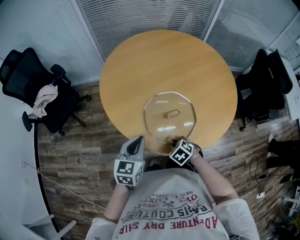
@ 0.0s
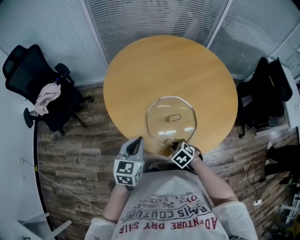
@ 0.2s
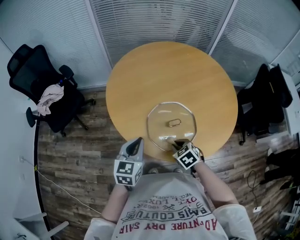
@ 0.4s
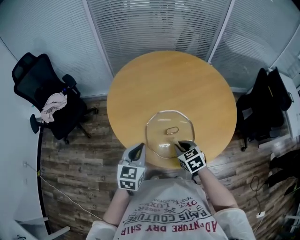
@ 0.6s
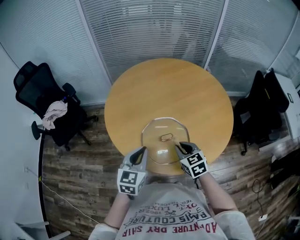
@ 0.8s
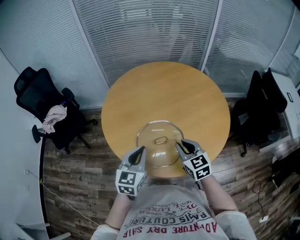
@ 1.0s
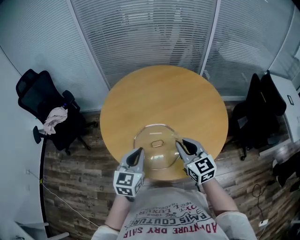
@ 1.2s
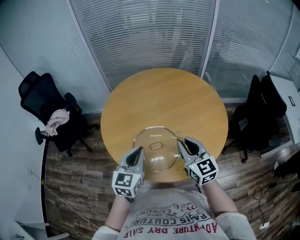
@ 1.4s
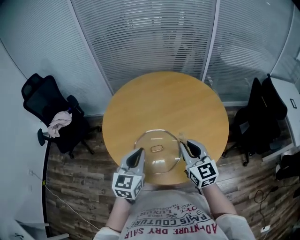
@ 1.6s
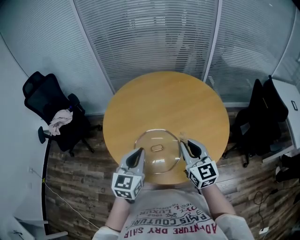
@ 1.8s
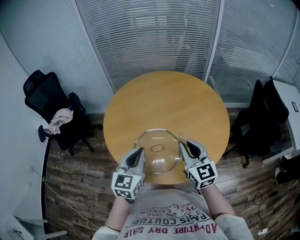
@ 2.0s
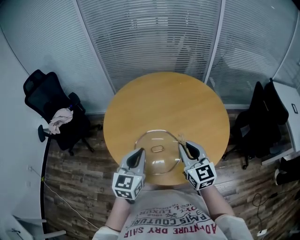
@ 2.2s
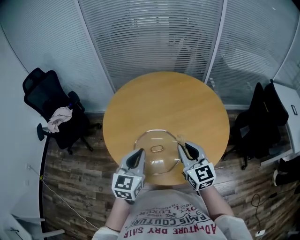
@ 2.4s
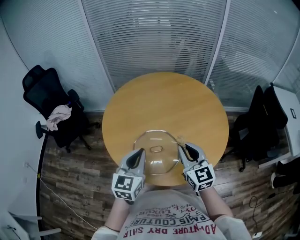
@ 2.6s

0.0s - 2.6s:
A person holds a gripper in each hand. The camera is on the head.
0.0s - 1.2s: The left gripper goes some 15 cm to the right and upward; the right gripper shifts approximately 30 cm upward and to the right, and tips its fingers upward by roughly 60 degrees.
1.2s - 2.6s: The grippers make only small movements.

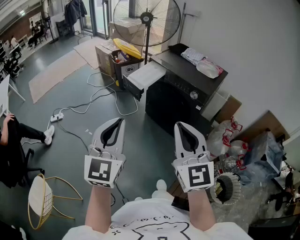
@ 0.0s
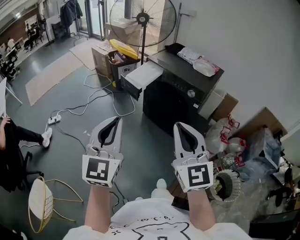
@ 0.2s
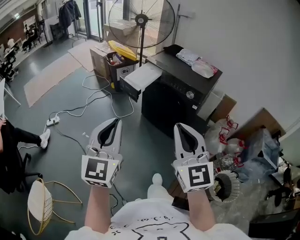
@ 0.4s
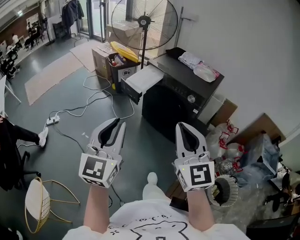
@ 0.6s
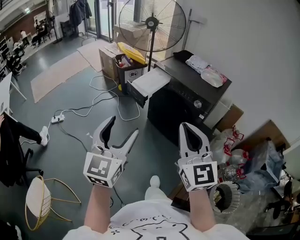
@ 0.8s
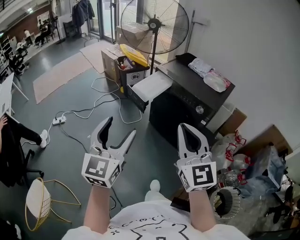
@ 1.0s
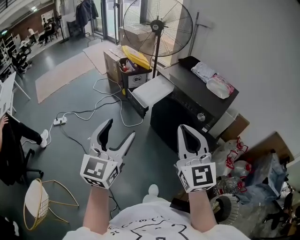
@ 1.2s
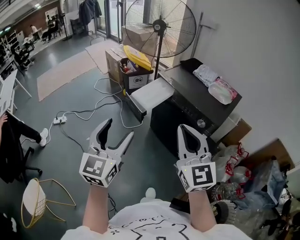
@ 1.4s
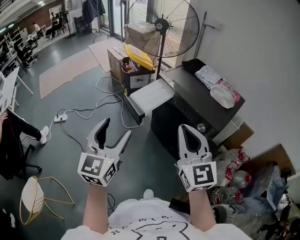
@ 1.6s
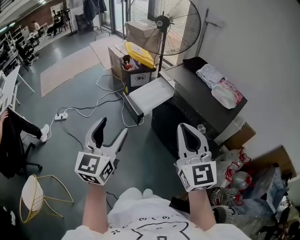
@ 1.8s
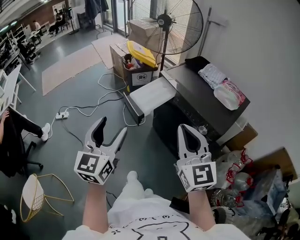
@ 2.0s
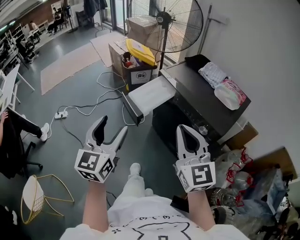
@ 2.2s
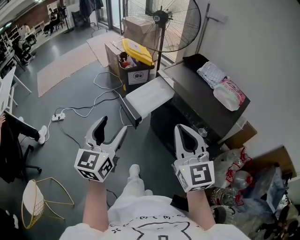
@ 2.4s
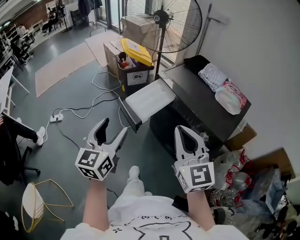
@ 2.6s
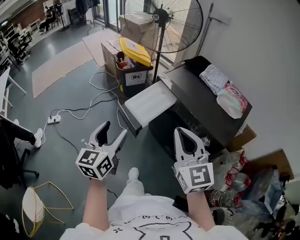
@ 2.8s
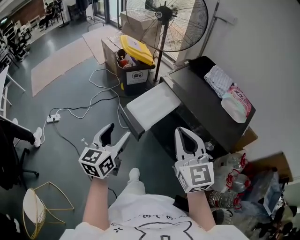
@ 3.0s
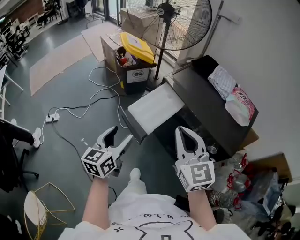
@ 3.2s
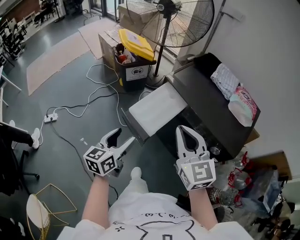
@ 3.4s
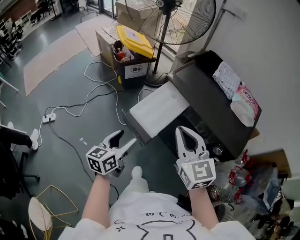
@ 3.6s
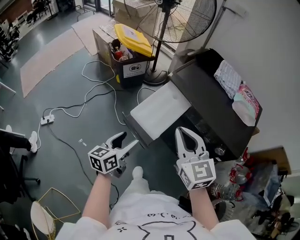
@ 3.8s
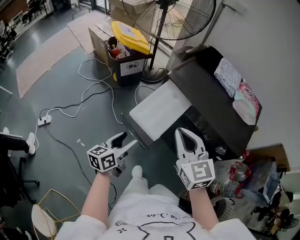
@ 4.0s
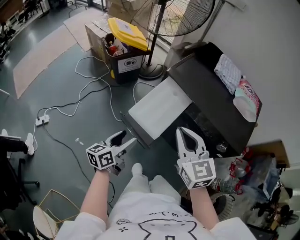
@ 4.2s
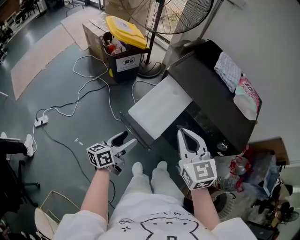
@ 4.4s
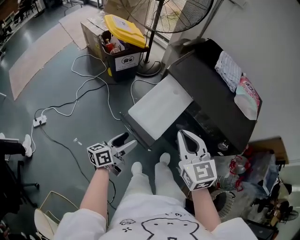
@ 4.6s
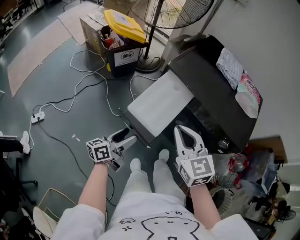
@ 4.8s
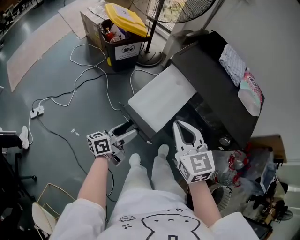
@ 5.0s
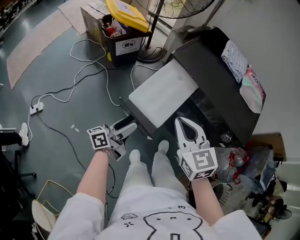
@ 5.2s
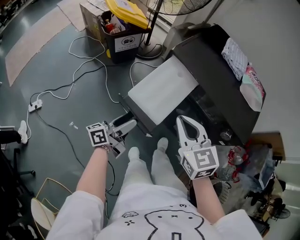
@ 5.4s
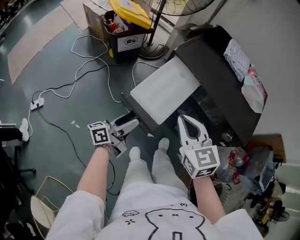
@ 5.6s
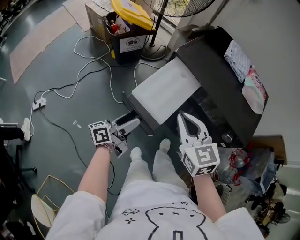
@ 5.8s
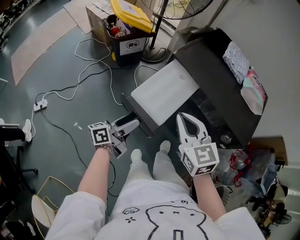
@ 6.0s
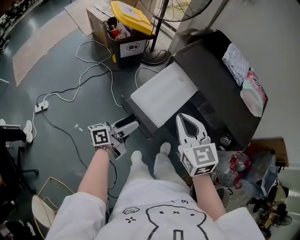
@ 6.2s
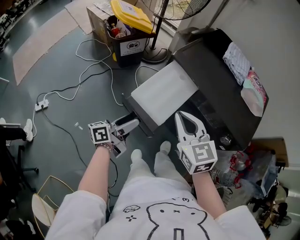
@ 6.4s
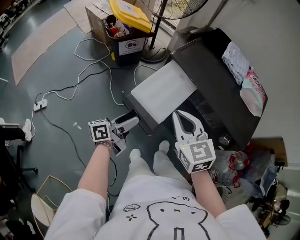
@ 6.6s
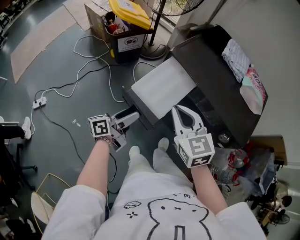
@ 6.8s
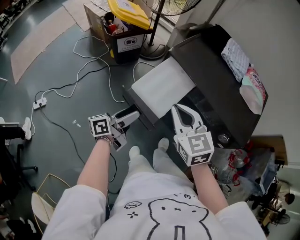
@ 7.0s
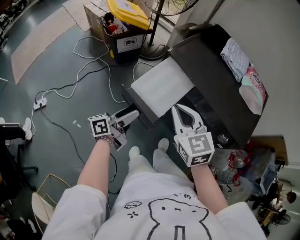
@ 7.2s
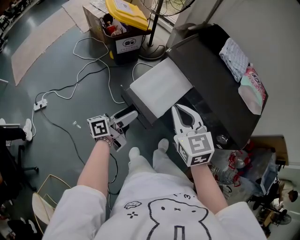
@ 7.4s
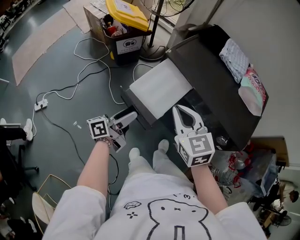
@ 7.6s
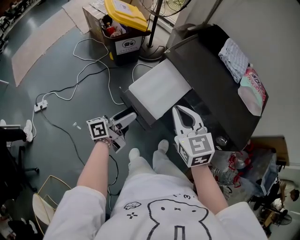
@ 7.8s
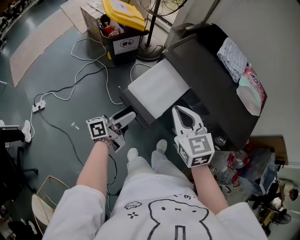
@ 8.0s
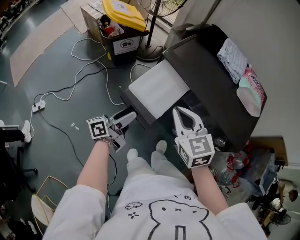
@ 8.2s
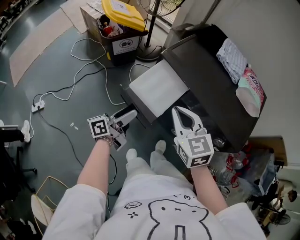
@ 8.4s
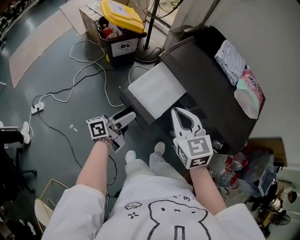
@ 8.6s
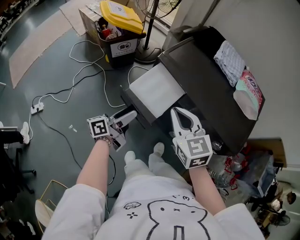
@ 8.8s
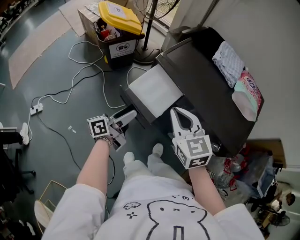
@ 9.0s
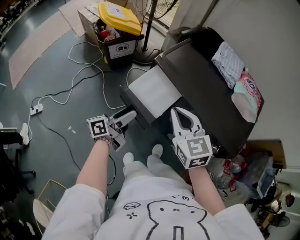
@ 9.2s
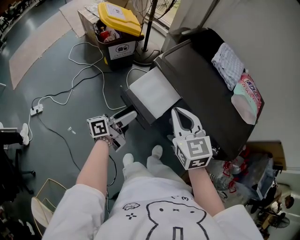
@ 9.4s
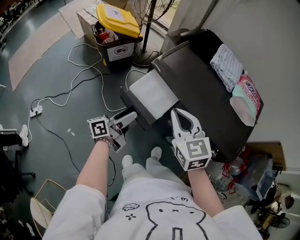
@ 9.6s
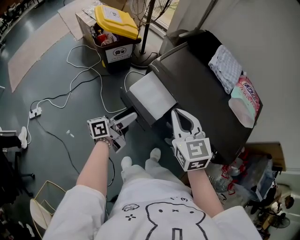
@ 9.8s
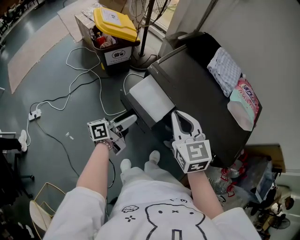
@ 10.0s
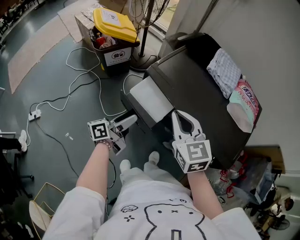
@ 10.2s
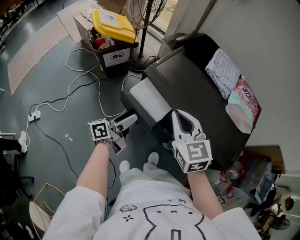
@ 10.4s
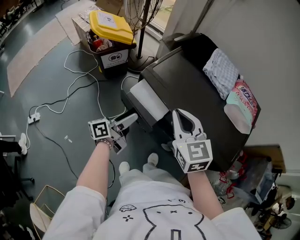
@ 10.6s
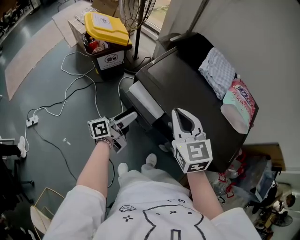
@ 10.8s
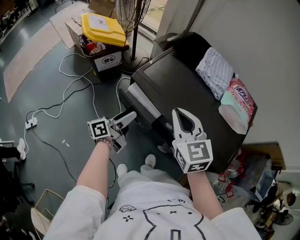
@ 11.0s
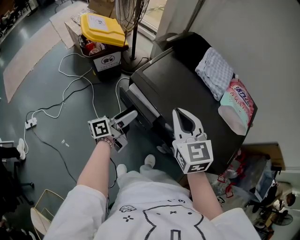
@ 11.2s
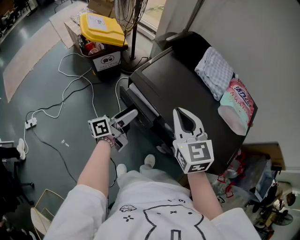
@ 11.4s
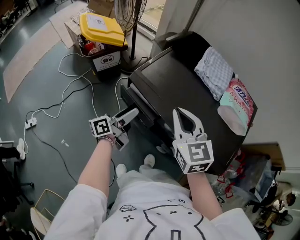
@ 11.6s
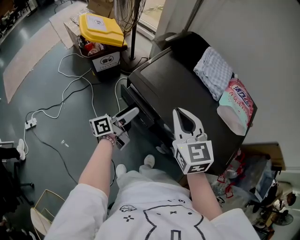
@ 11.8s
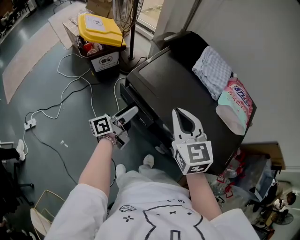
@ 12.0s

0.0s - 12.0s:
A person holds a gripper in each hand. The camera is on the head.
0.0s - 1.6s: The grippers both shift forward by some 20 cm. The left gripper opens up.
1.6s - 3.0s: The left gripper travels forward and downward by some 25 cm, and changes its angle by roughly 20 degrees. Meanwhile the right gripper shifts approximately 20 cm forward.
3.0s - 4.4s: The right gripper heads downward, forward and to the left, covering some 15 cm; the left gripper heads downward and forward, covering some 20 cm, and changes its angle by about 40 degrees.
6.0s - 7.6s: The right gripper changes place by some 5 cm.
7.6s - 9.0s: The left gripper changes place by some 5 cm.
9.0s - 10.4s: Both grippers travel together forward, about 5 cm.
10.4s - 12.0s: The right gripper changes place by approximately 5 cm; the left gripper moves forward, approximately 10 cm.

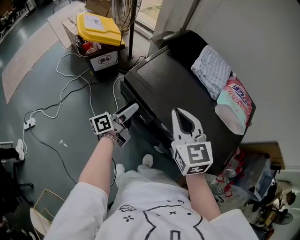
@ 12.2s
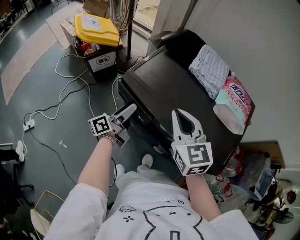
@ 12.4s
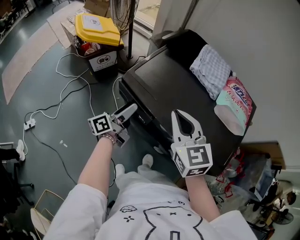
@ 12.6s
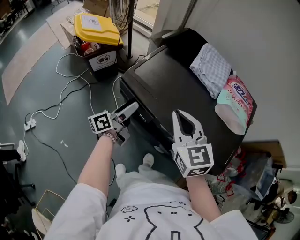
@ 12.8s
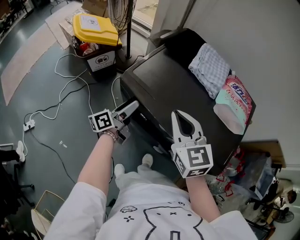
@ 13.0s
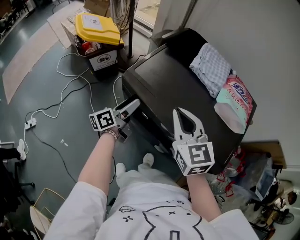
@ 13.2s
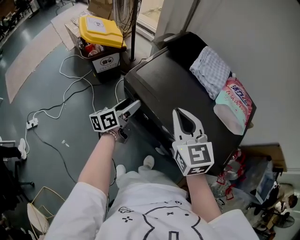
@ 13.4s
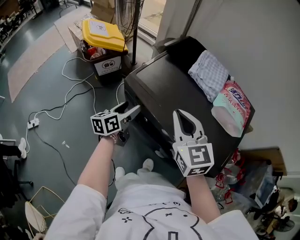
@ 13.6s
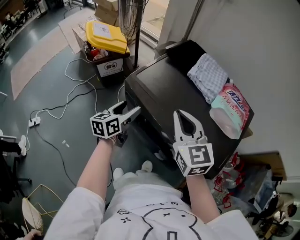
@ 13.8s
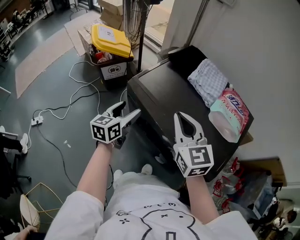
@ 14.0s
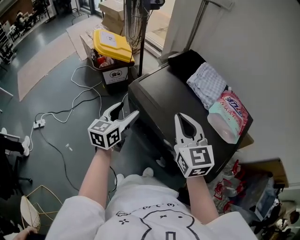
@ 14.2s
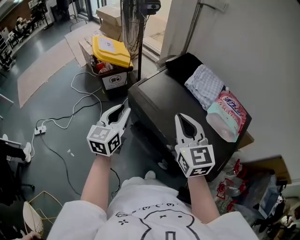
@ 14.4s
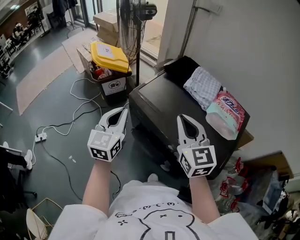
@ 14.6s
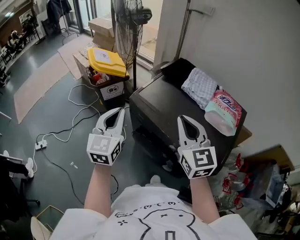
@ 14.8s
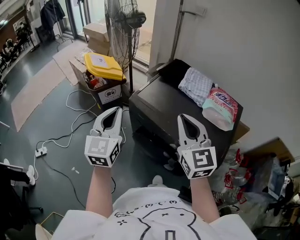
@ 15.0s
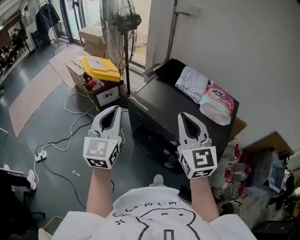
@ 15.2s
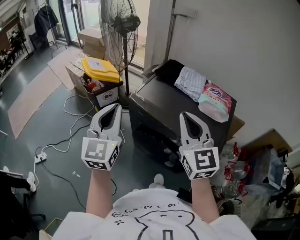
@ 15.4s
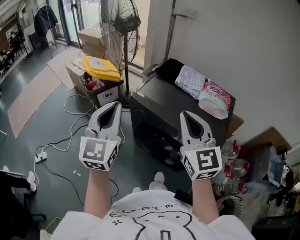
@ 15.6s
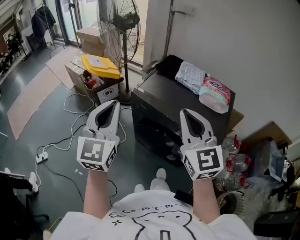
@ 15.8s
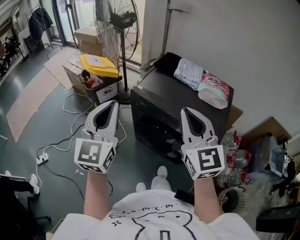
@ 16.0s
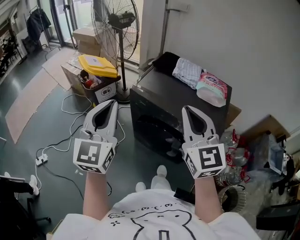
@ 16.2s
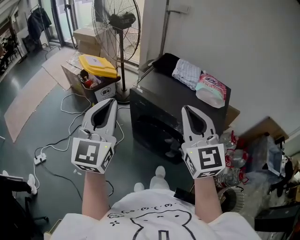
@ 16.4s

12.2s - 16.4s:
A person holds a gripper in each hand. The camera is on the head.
12.2s - 13.6s: The left gripper changes its angle by about 30 degrees.
13.6s - 15.0s: The left gripper moves upward, some 25 cm, rolls clockwise, seen from behind, by some 50 degrees, and closes. Meanwhile the right gripper shifts roughly 10 cm upward and backward.
15.0s - 16.4s: The grippers both shift backward and upward by some 15 cm.

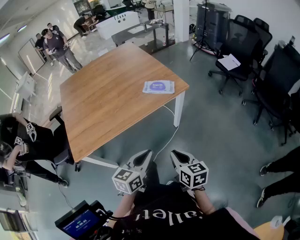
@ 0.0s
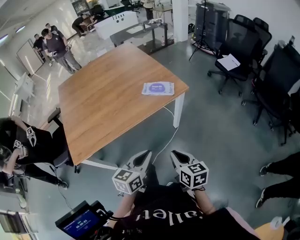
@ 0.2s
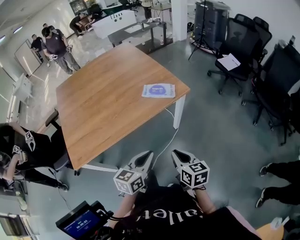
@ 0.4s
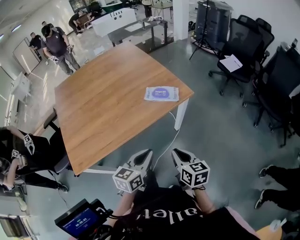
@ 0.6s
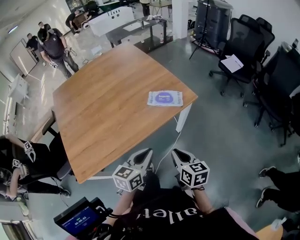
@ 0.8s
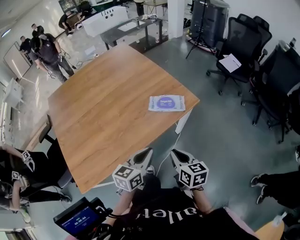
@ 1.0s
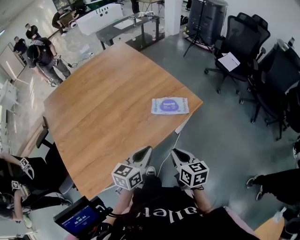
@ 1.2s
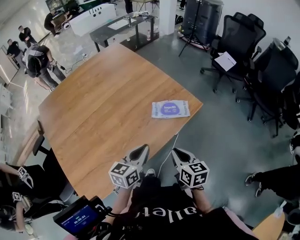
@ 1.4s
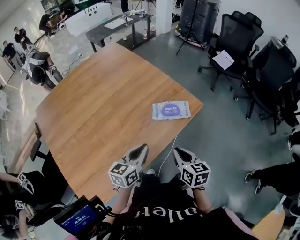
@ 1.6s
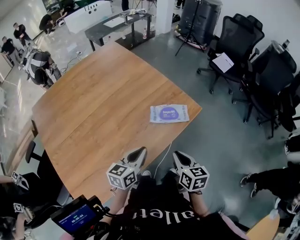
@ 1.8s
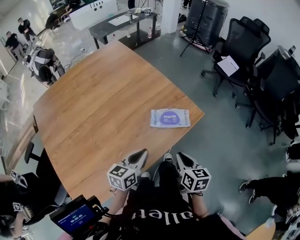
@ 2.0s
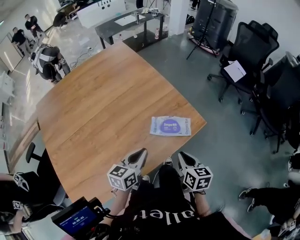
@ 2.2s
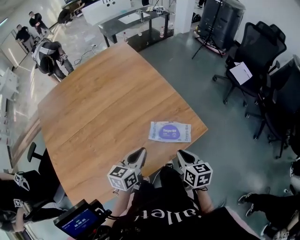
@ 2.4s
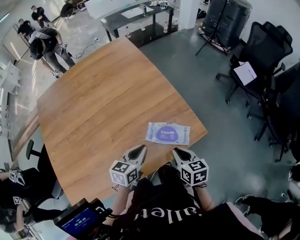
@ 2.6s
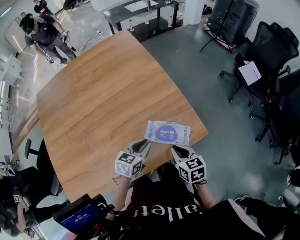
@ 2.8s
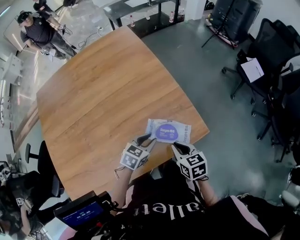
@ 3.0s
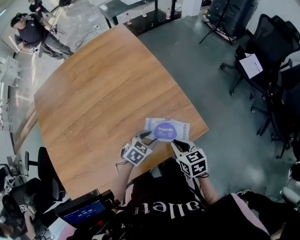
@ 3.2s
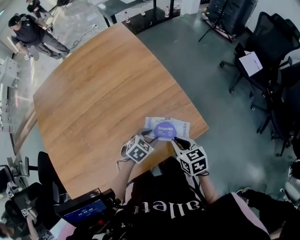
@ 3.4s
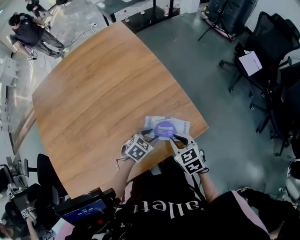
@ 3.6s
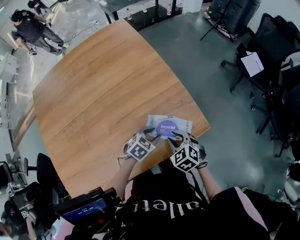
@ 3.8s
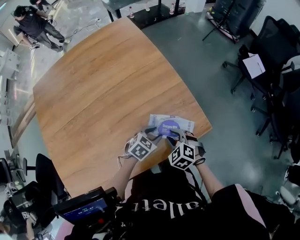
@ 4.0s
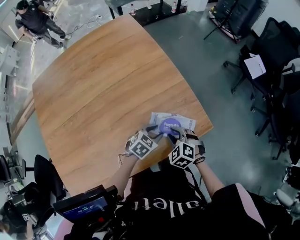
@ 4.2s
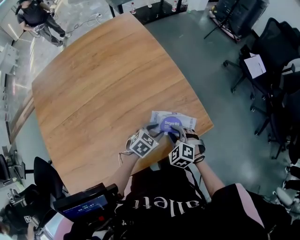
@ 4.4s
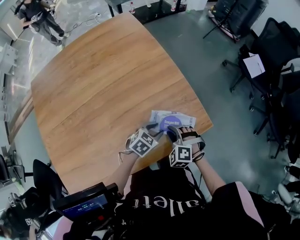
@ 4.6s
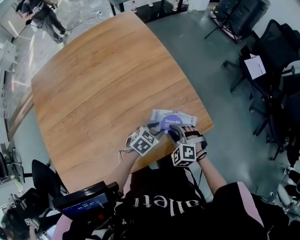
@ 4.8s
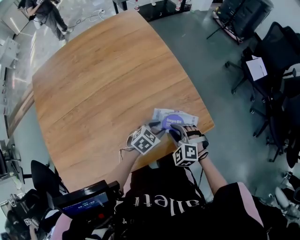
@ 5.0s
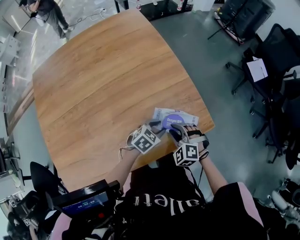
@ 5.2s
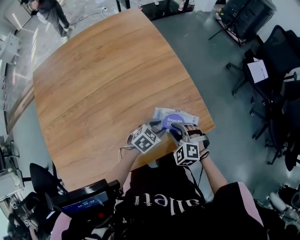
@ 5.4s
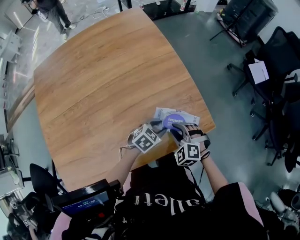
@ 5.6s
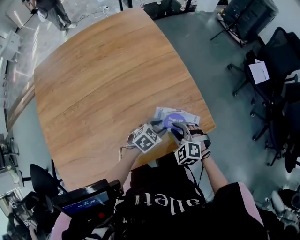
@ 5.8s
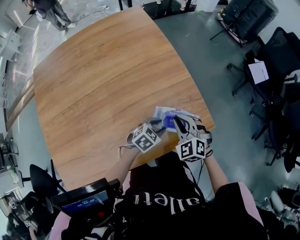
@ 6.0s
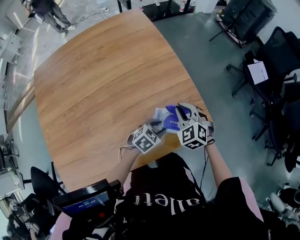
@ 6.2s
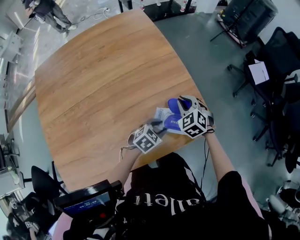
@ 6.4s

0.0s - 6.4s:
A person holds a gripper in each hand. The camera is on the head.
0.0s - 1.6s: Both grippers move forward and to the left, about 30 cm.
1.6s - 3.2s: The left gripper heads forward, downward and to the right, covering some 25 cm, tips its fingers downward by roughly 30 degrees, and opens; the right gripper heads forward, covering approximately 20 cm, and turns by roughly 30 degrees.
3.2s - 4.8s: The right gripper shifts by about 5 cm, and rotates around the line of its fingers by about 70 degrees, counterclockwise from behind.
4.8s - 6.4s: The right gripper heads forward, covering roughly 15 cm, and rotates roughly 20 degrees.
